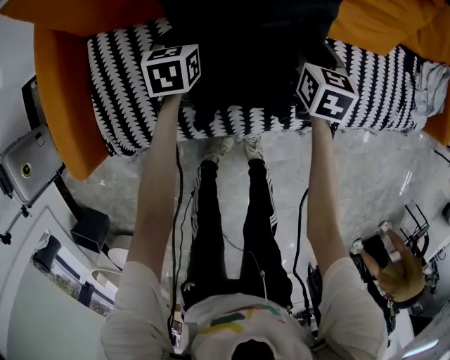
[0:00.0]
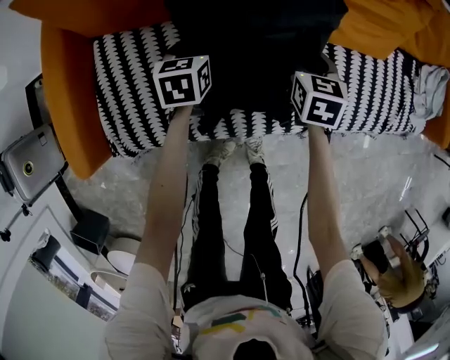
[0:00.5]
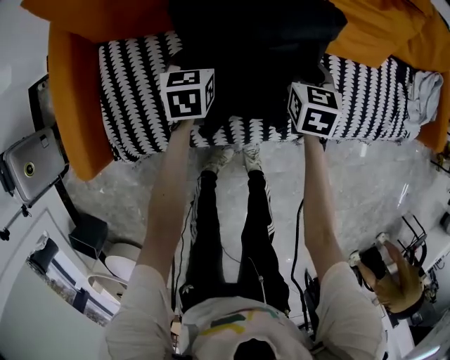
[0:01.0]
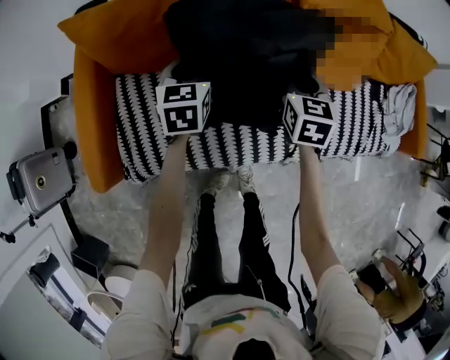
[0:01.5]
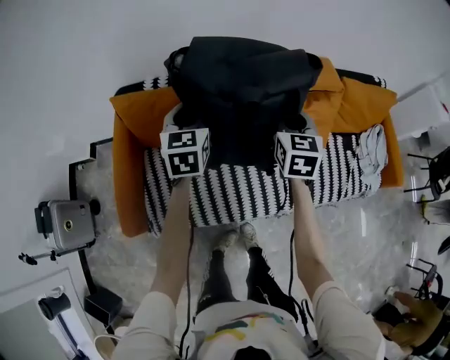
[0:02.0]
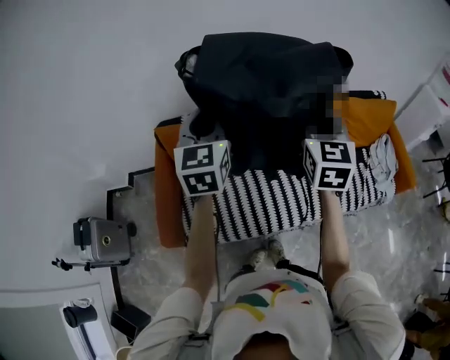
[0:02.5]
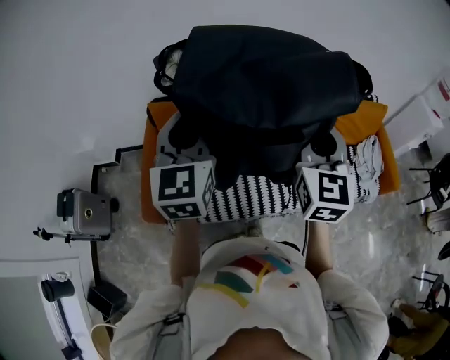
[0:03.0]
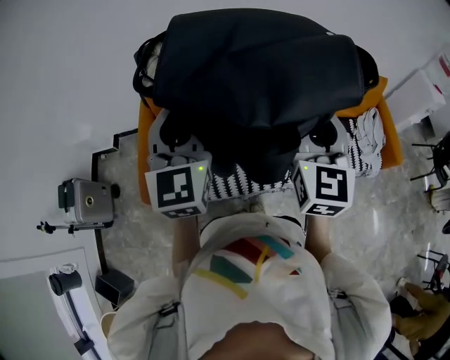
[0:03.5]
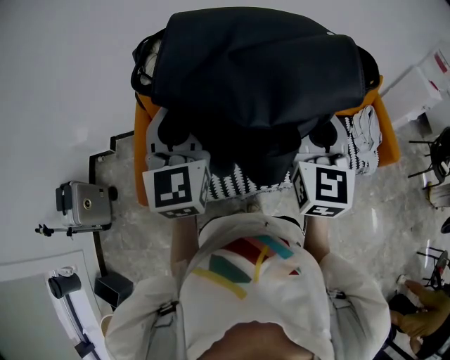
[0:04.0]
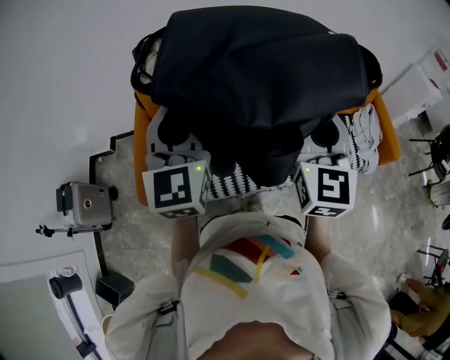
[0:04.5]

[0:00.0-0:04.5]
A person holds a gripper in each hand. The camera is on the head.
0:00.0 to 0:02.0: The grippers both shift upward by approximately 40 cm. The left gripper swivels about 30 degrees, and closes up. The right gripper swivels approximately 20 degrees, and closes its fingers.
0:02.0 to 0:04.5: The right gripper heads backward and upward, covering roughly 35 cm, and swivels roughly 20 degrees, while the left gripper travels upward and backward by roughly 35 cm, and turns by roughly 30 degrees.

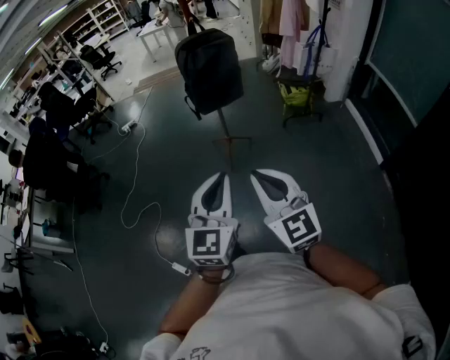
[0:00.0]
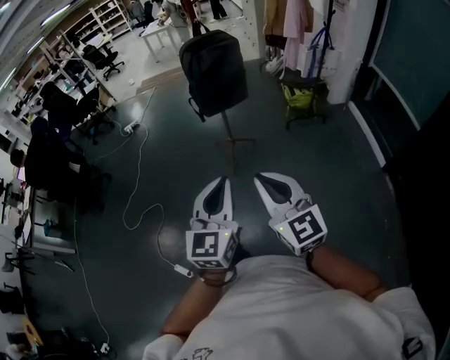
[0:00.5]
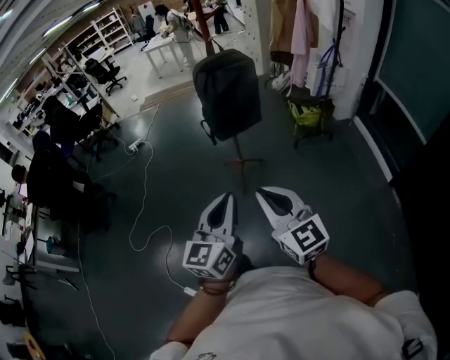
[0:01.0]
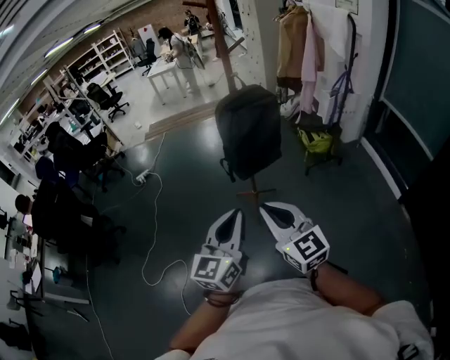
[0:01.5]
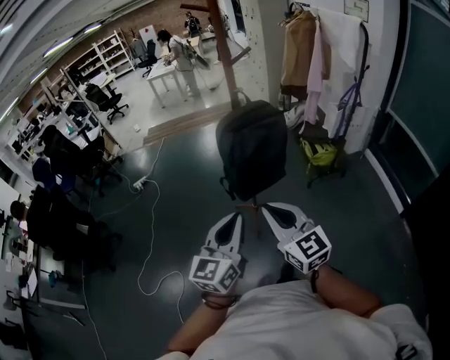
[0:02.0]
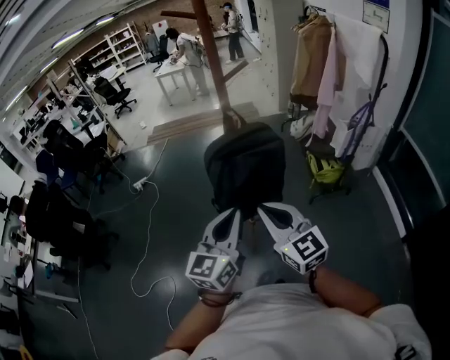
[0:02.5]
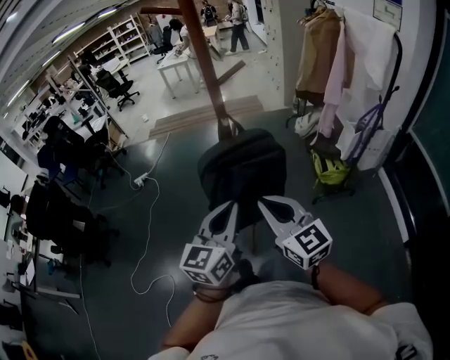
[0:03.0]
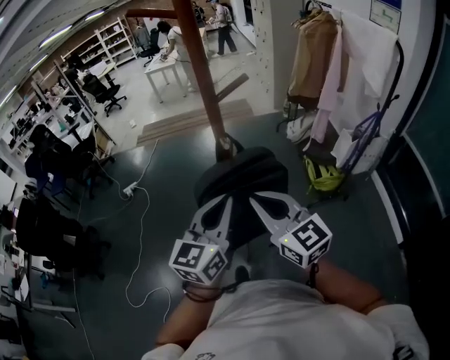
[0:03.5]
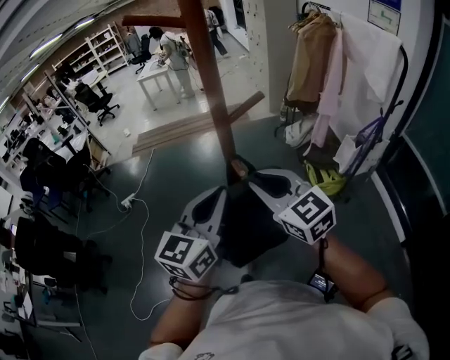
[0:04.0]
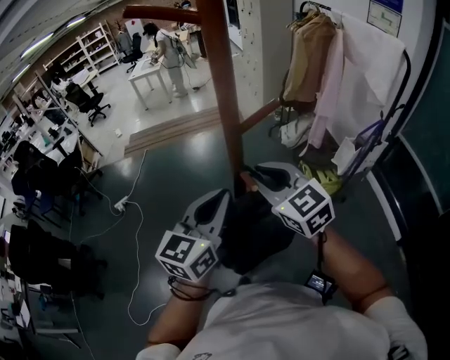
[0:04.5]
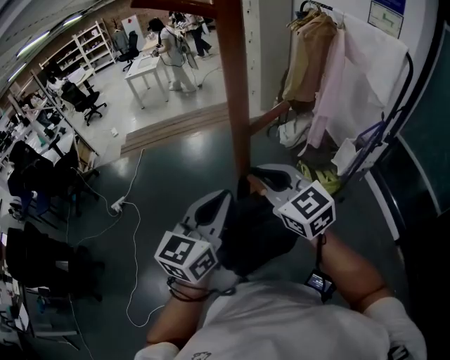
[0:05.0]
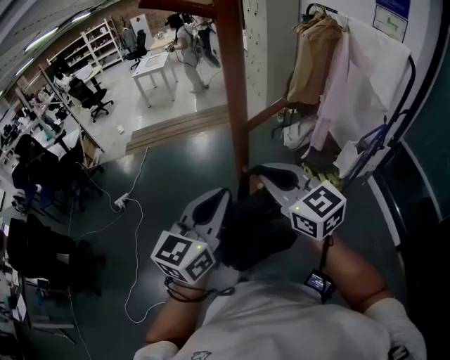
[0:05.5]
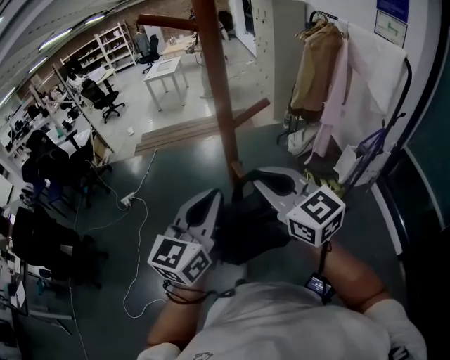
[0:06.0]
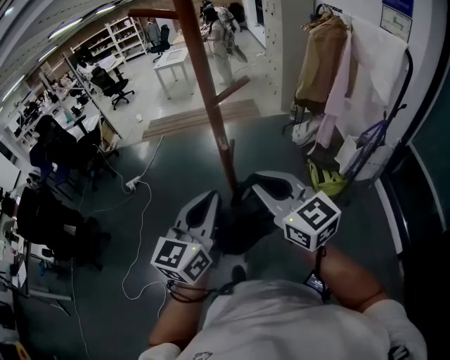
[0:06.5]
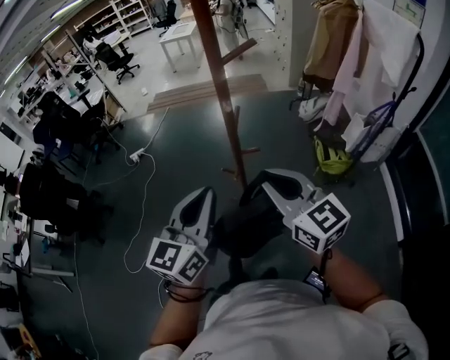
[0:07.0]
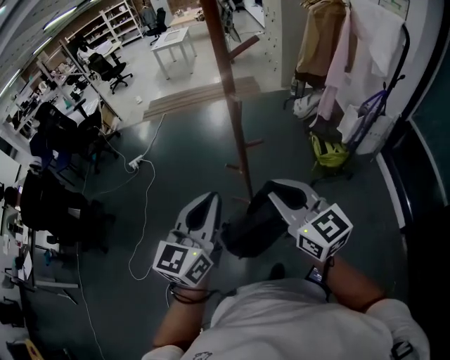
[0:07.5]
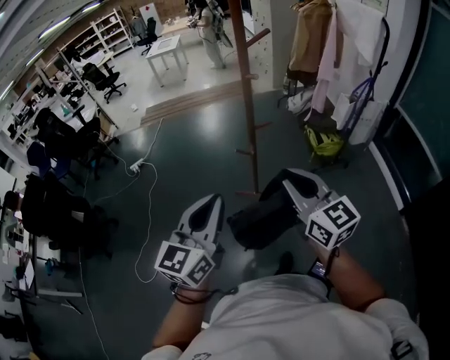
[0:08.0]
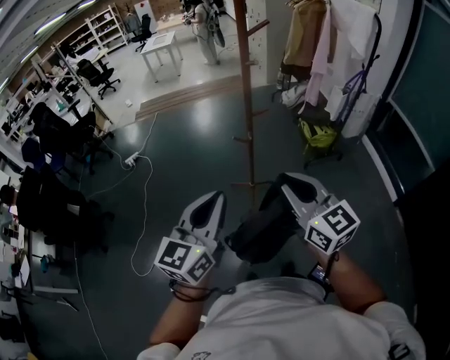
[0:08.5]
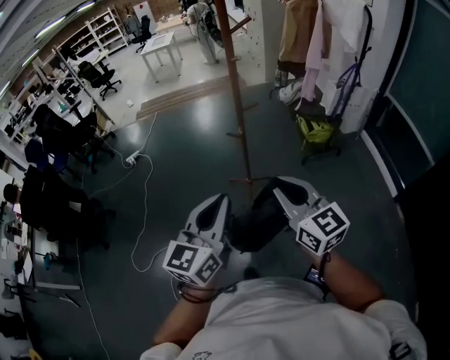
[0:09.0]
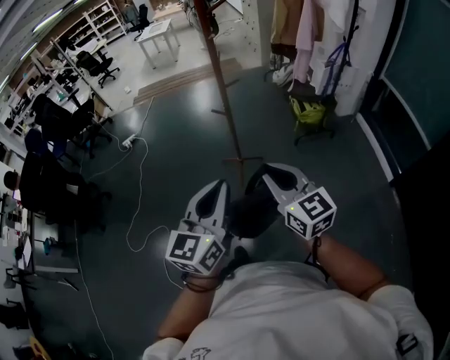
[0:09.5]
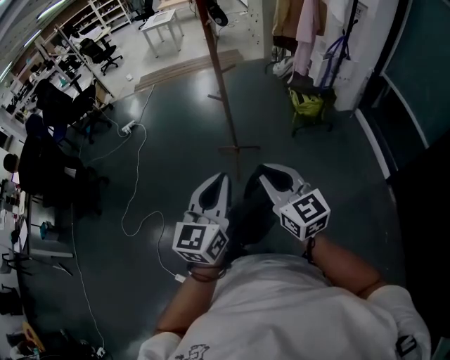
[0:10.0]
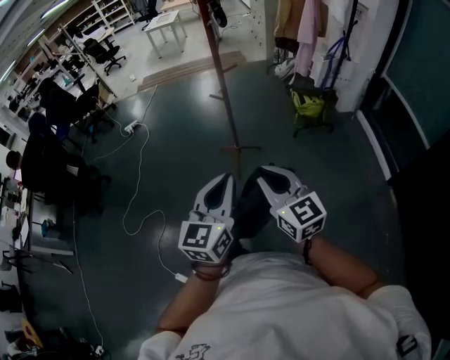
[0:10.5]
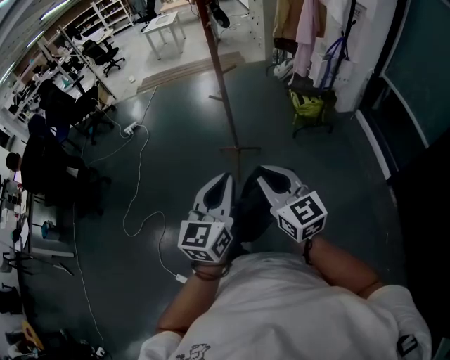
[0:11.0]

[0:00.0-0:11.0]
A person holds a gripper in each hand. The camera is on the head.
0:00.0 to 0:02.0: The grippers both shift forward by some 40 cm.
0:02.0 to 0:03.5: The grippers both shift forward by approximately 30 cm.
0:03.5 to 0:05.5: The right gripper moves forward, approximately 15 cm; the left gripper goes roughly 15 cm forward and to the left.
0:05.5 to 0:07.5: Both grippers travel together backward, about 25 cm.
0:07.5 to 0:09.0: Both grippers move backward, approximately 25 cm.
0:09.0 to 0:11.0: Both grippers travel together backward and to the right, roughly 20 cm.

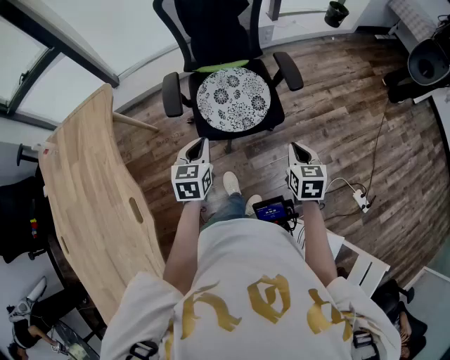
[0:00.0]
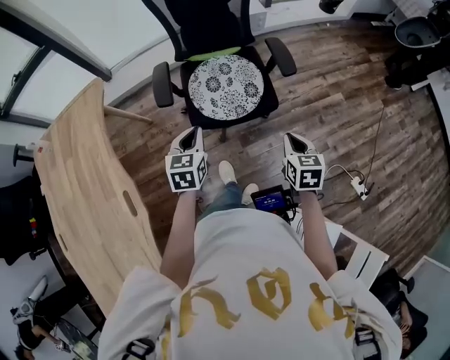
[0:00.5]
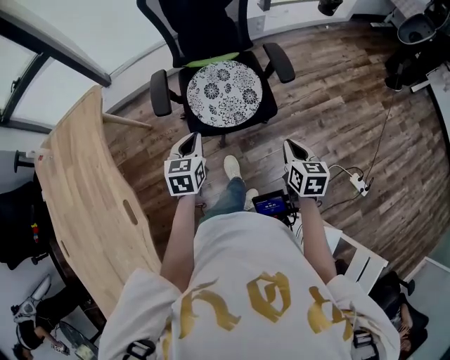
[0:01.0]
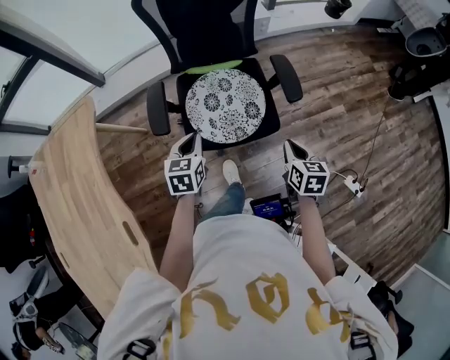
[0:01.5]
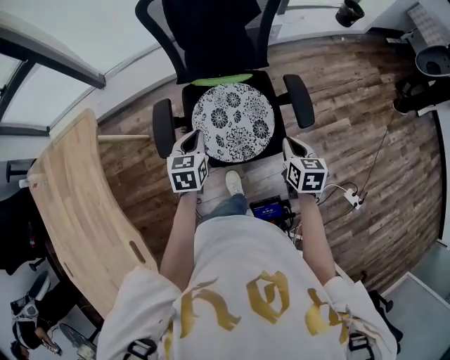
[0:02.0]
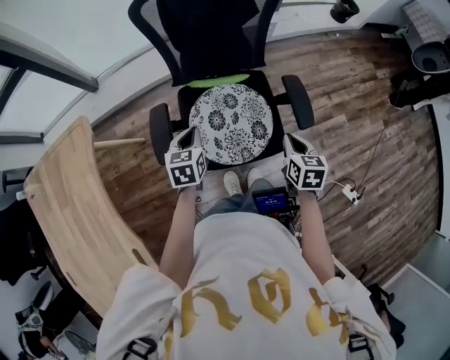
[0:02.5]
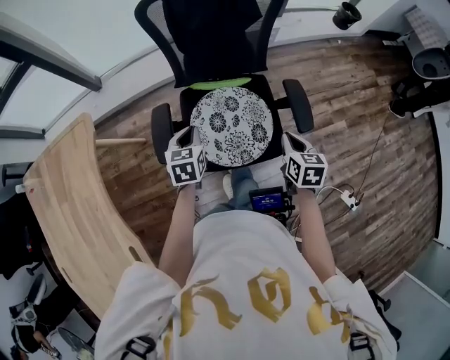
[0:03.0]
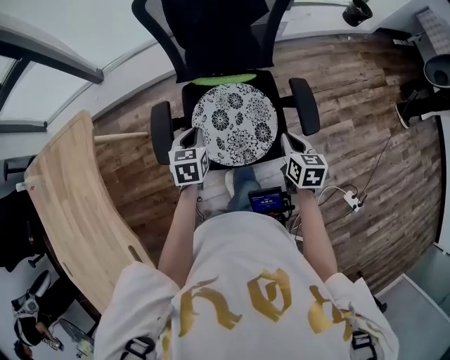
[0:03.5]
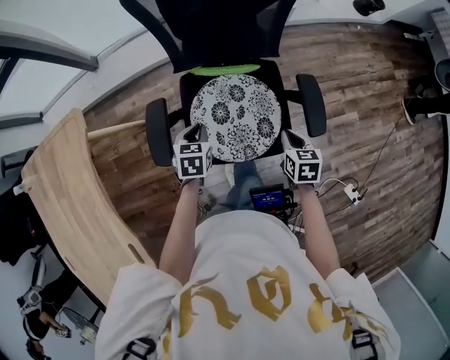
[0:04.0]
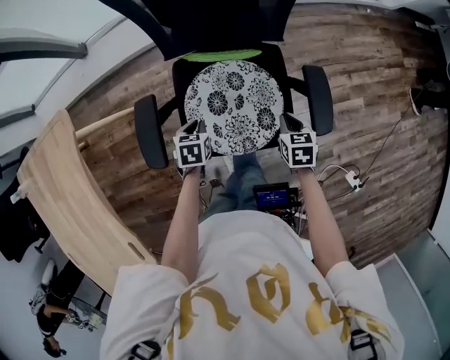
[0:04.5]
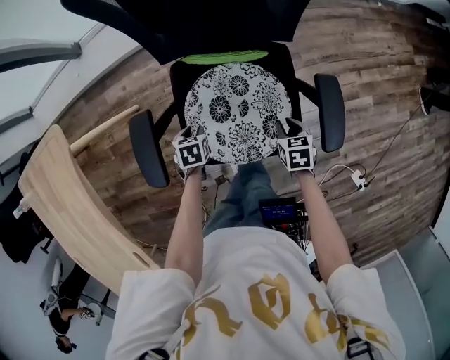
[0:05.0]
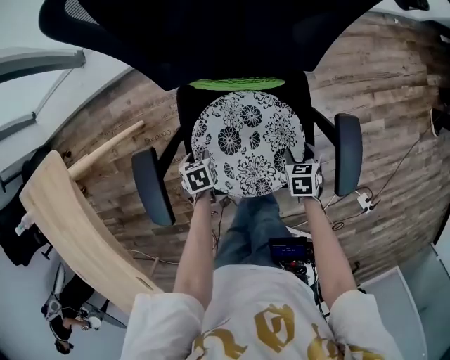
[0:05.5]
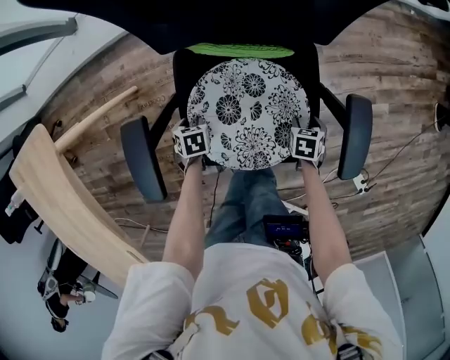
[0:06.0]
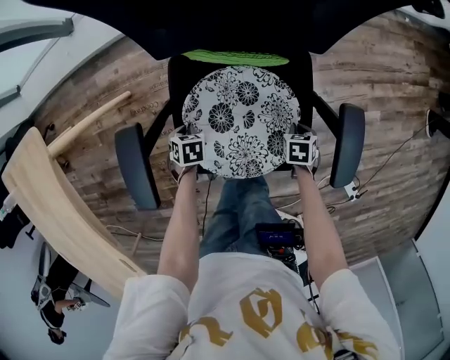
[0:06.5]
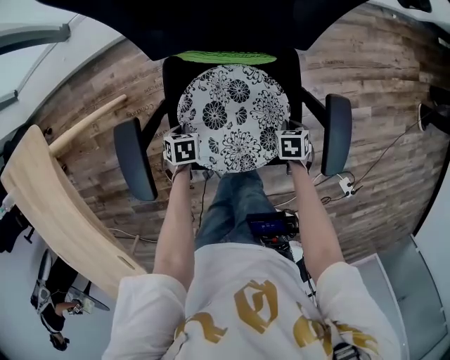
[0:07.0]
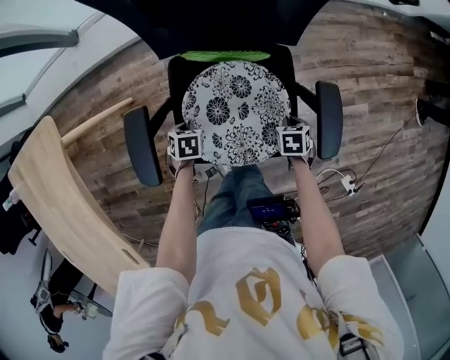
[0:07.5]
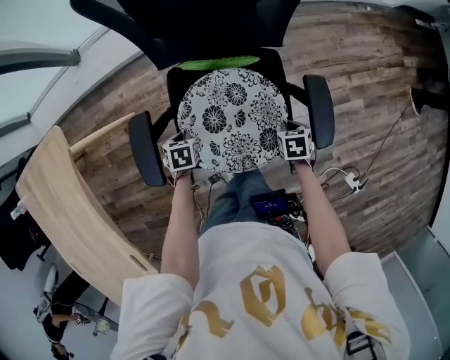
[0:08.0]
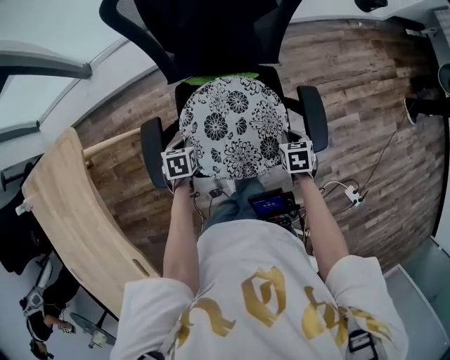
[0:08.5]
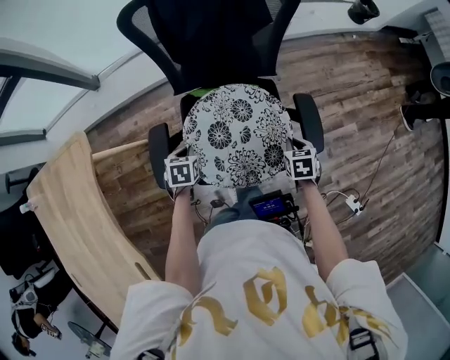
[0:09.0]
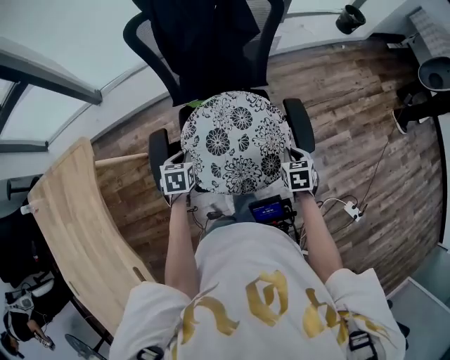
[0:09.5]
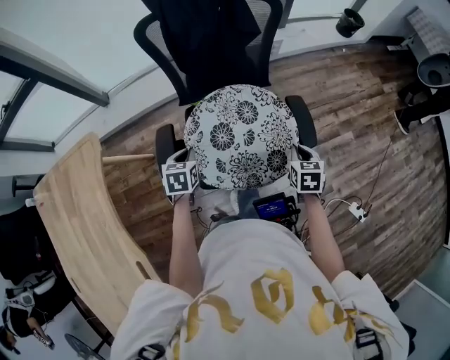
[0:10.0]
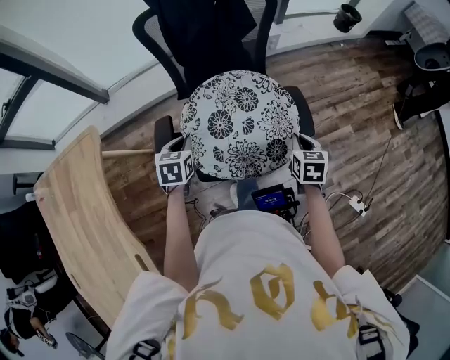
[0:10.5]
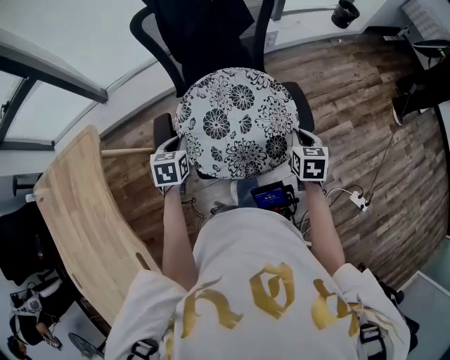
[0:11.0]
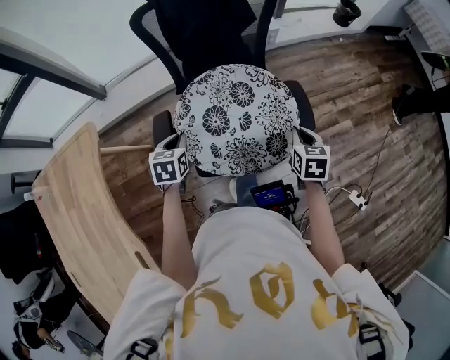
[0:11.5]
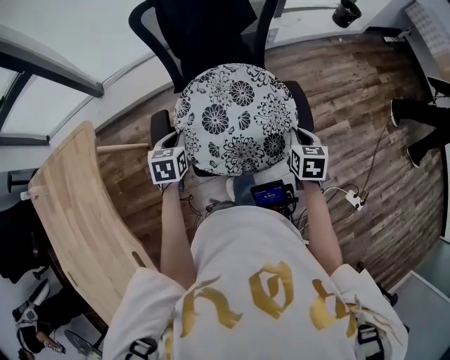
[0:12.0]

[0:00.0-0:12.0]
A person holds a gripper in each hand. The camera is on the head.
0:00.0 to 0:02.0: Both grippers move forward, about 25 cm.
0:02.0 to 0:04.0: The two grippers go about 10 cm downward and forward.
0:04.0 to 0:06.0: Both grippers travel together downward, about 25 cm. The right gripper rotates about 30 degrees, and opens up. The left gripper rotates some 30 degrees, and opens up.
0:06.0 to 0:08.0: The two grippers go some 10 cm upward. The right gripper closes up; the left gripper closes its fingers.
0:08.0 to 0:10.0: The two grippers go some 20 cm upward. The right gripper turns by some 30 degrees, while the left gripper turns by some 20 degrees.
0:10.0 to 0:12.0: The grippers make only small movements.
